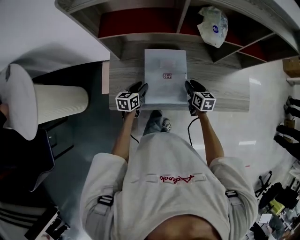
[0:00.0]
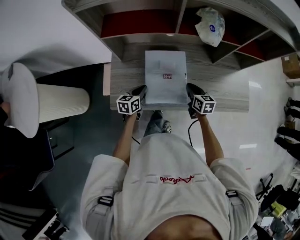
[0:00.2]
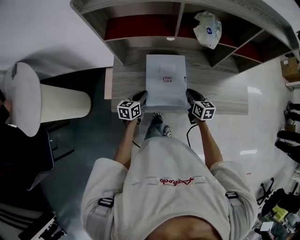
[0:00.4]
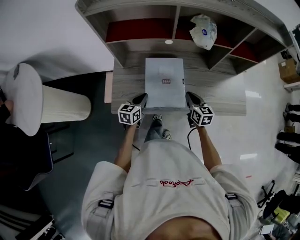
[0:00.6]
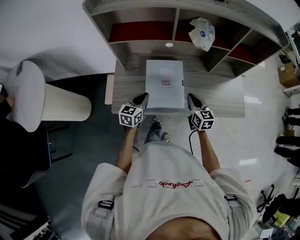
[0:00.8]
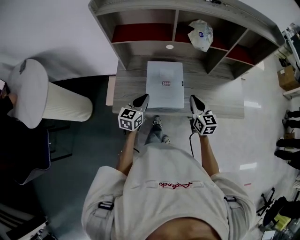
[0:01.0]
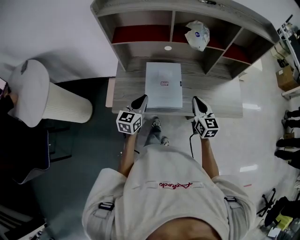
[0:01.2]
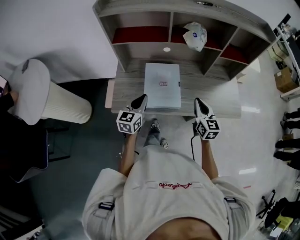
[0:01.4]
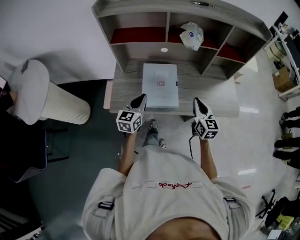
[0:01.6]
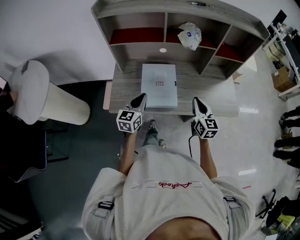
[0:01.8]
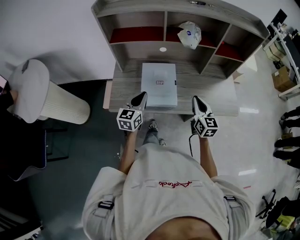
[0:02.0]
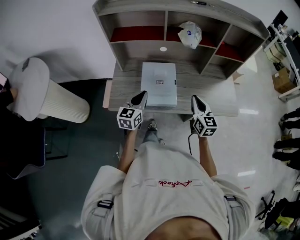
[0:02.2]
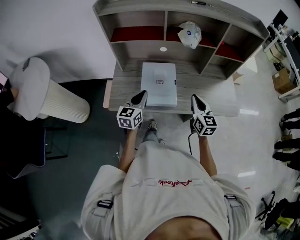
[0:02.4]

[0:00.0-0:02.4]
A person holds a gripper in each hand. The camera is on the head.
0:00.0 to 0:01.2: Both grippers travel together upward and backward, about 20 cm. The left gripper changes its angle by about 30 degrees. The right gripper changes its angle by about 30 degrees.
0:01.2 to 0:02.4: The grippers move only a little.

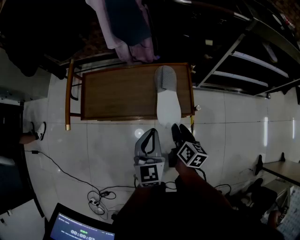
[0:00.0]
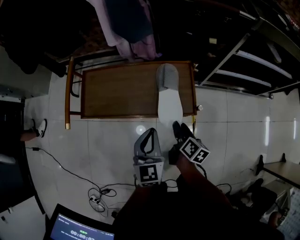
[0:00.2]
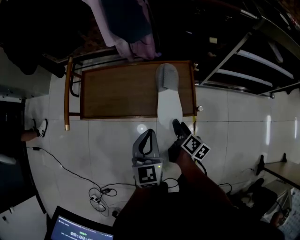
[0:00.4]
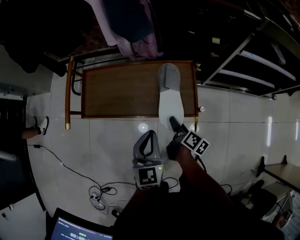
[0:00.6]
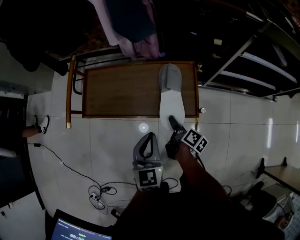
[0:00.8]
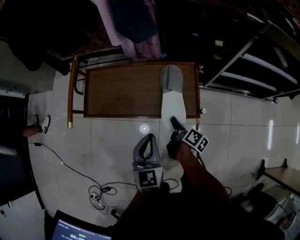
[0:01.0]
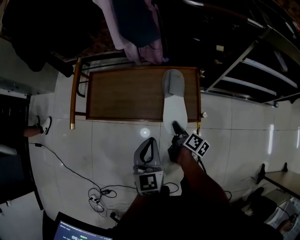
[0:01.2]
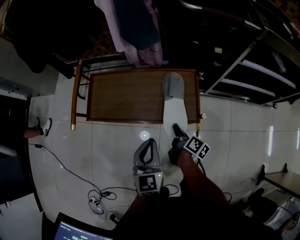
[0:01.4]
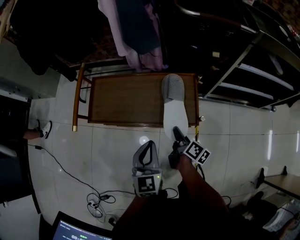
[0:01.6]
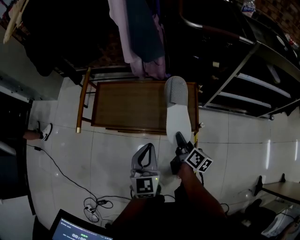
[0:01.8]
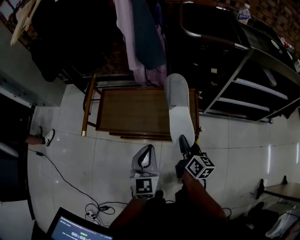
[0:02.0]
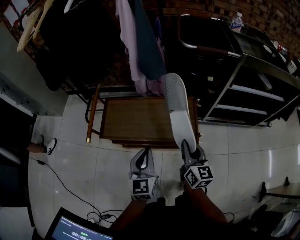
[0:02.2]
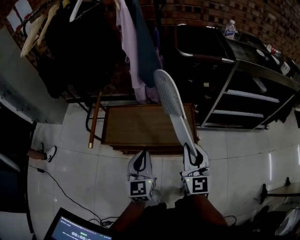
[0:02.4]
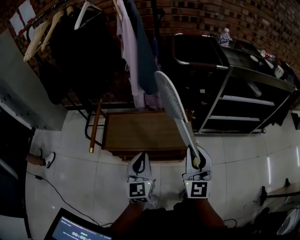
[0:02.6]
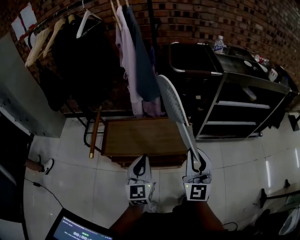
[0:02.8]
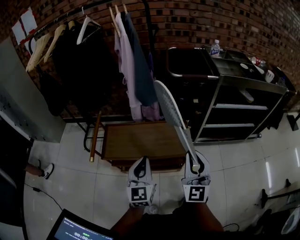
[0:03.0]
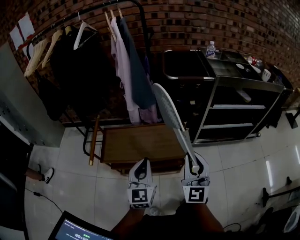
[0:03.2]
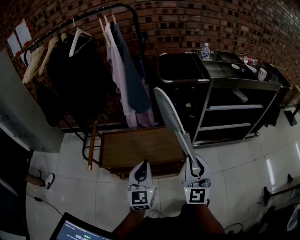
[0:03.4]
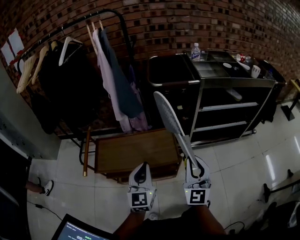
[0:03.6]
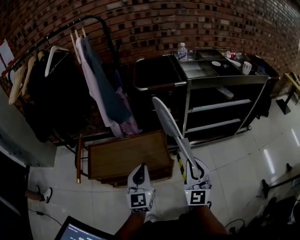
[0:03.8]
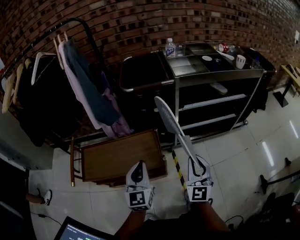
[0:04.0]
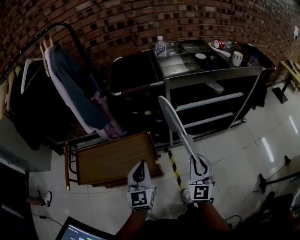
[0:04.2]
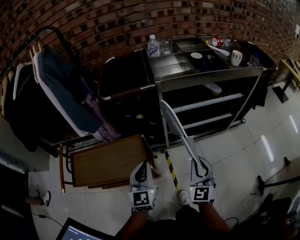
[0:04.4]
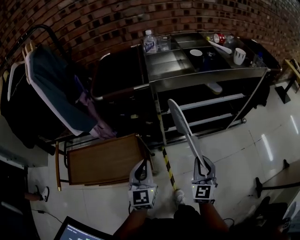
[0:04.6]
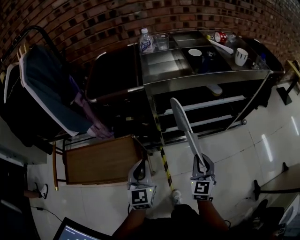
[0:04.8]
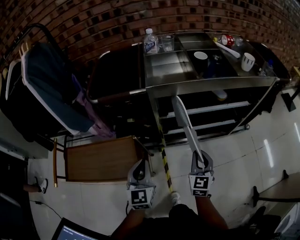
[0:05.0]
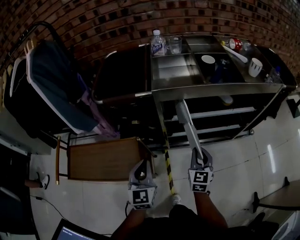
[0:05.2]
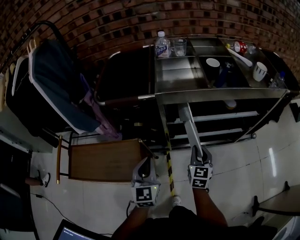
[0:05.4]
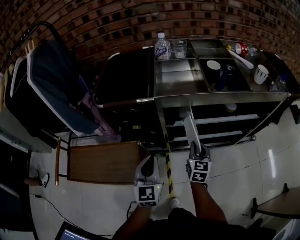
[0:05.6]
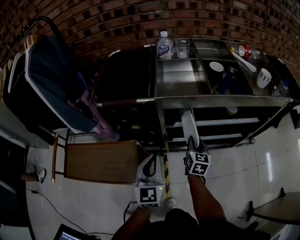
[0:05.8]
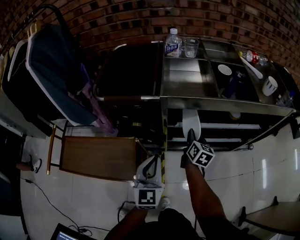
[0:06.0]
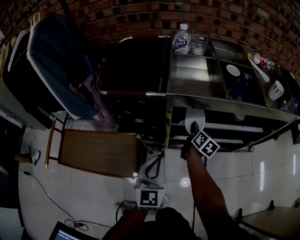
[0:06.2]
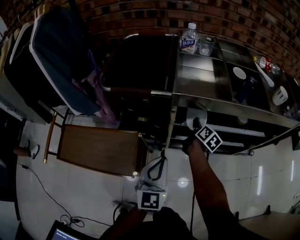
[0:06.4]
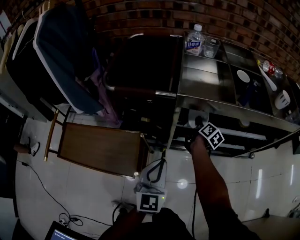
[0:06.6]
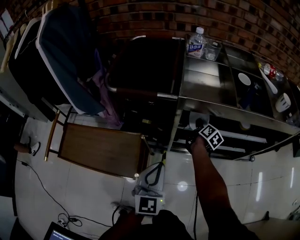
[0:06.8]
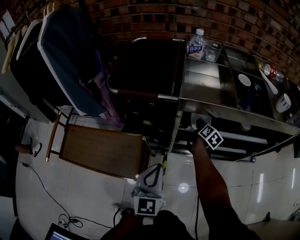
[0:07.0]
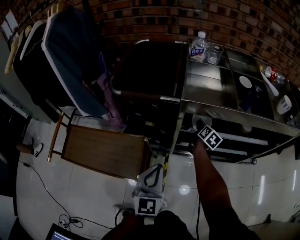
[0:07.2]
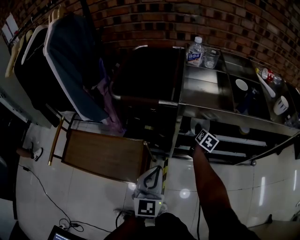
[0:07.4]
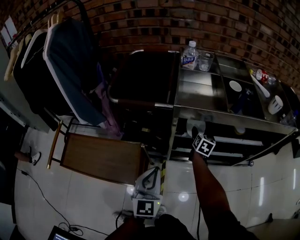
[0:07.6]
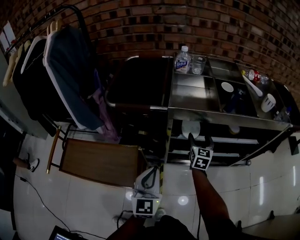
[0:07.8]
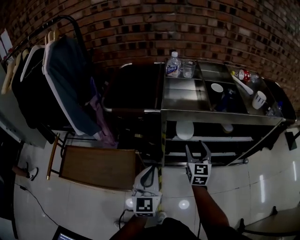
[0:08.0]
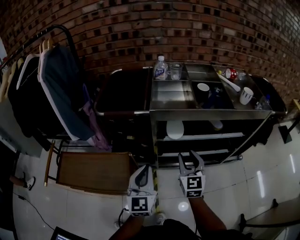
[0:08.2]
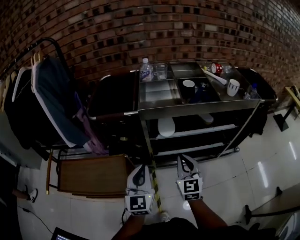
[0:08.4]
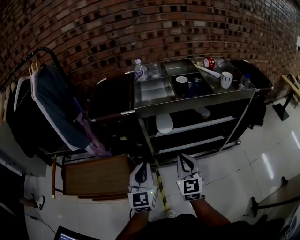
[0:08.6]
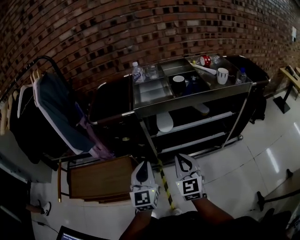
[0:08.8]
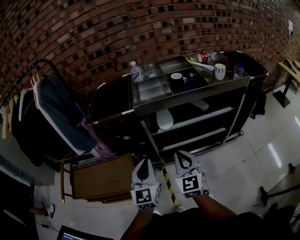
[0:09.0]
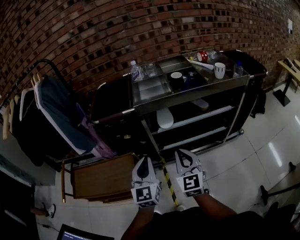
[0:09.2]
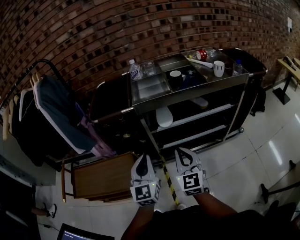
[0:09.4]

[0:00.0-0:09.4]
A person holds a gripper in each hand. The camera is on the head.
0:00.0 to 0:01.6: The right gripper turns by approximately 20 degrees.
0:01.6 to 0:03.2: The right gripper goes some 35 cm upward, and rotates around the line of its fingers by roughly 80 degrees, counterclockwise from behind. The left gripper heads upward, covering approximately 15 cm.
0:03.2 to 0:04.8: The right gripper shifts about 40 cm to the right, forward and downward, and swivels some 30 degrees; the left gripper shifts approximately 35 cm to the right and forward.
0:04.8 to 0:06.2: The left gripper is displaced forward and to the right by approximately 10 cm; the right gripper travels forward by roughly 30 cm, and twists roughly 50 degrees clockwise, seen from behind.
0:06.2 to 0:07.8: The right gripper shifts some 5 cm upward, turns by about 40 degrees, and opens.
0:07.8 to 0:09.4: The right gripper travels backward and upward by some 30 cm, changes its angle by some 20 degrees, and closes up, while the left gripper shifts approximately 10 cm upward and backward.

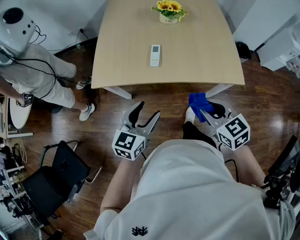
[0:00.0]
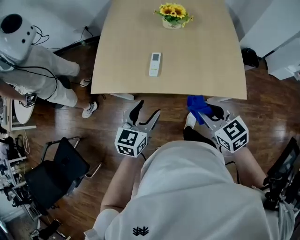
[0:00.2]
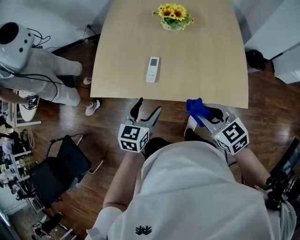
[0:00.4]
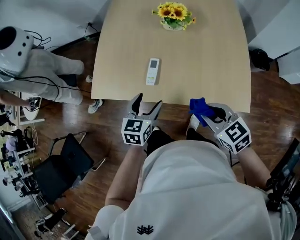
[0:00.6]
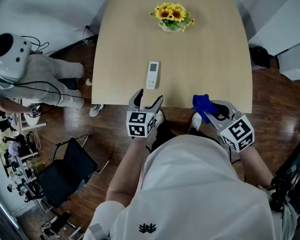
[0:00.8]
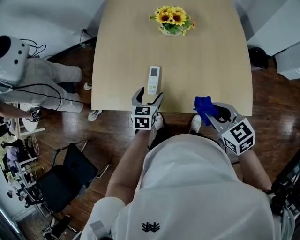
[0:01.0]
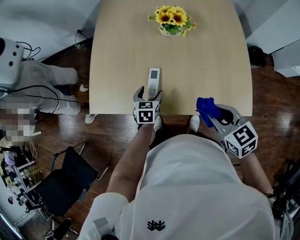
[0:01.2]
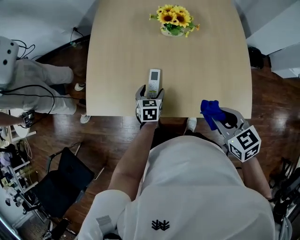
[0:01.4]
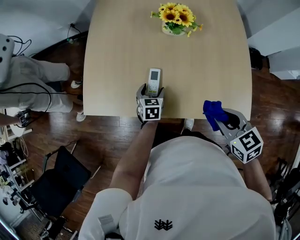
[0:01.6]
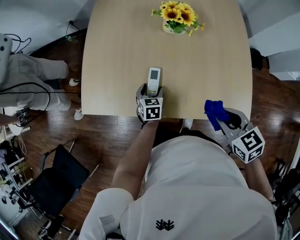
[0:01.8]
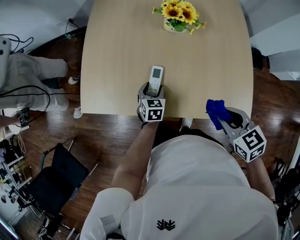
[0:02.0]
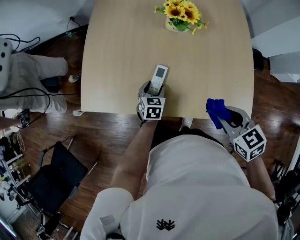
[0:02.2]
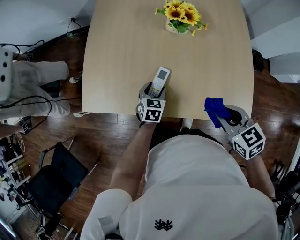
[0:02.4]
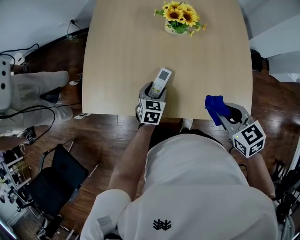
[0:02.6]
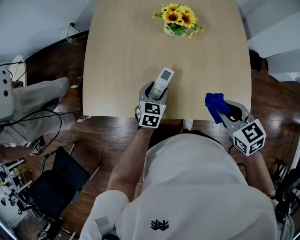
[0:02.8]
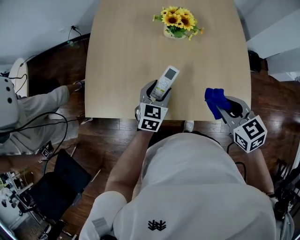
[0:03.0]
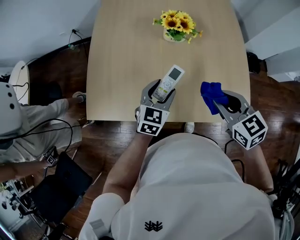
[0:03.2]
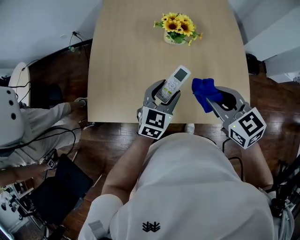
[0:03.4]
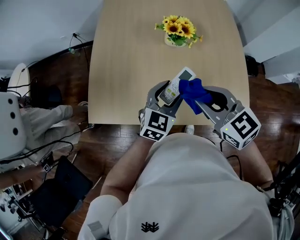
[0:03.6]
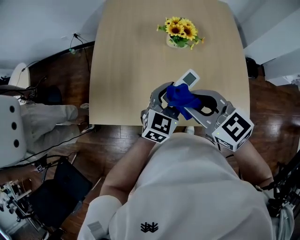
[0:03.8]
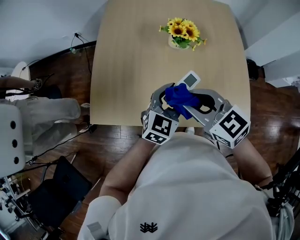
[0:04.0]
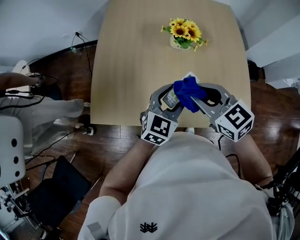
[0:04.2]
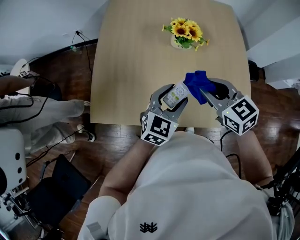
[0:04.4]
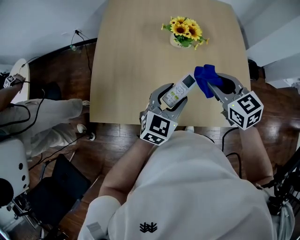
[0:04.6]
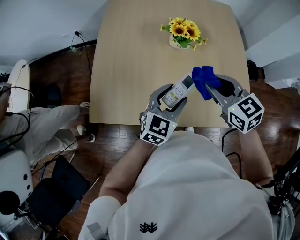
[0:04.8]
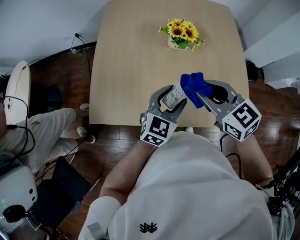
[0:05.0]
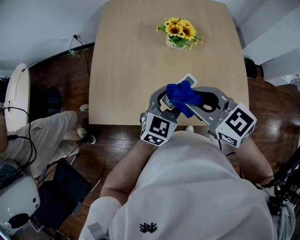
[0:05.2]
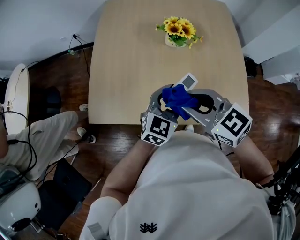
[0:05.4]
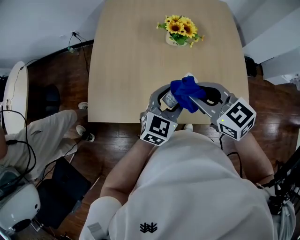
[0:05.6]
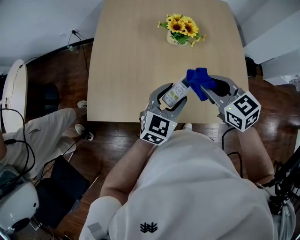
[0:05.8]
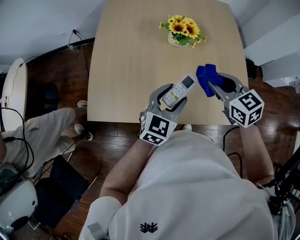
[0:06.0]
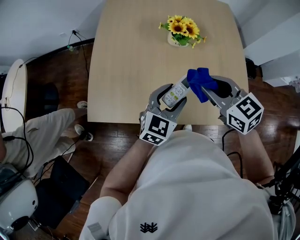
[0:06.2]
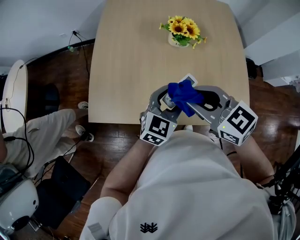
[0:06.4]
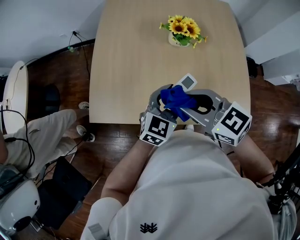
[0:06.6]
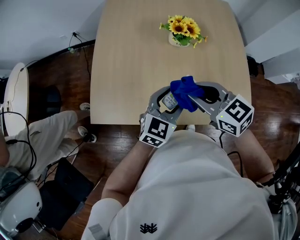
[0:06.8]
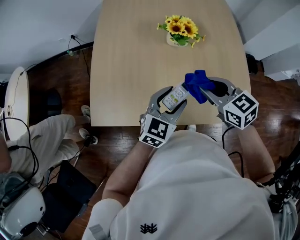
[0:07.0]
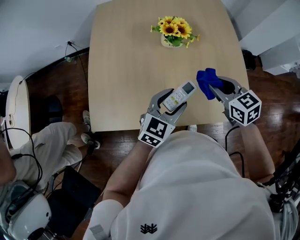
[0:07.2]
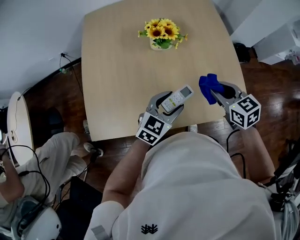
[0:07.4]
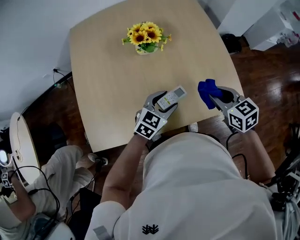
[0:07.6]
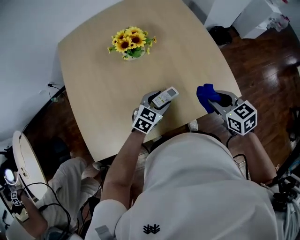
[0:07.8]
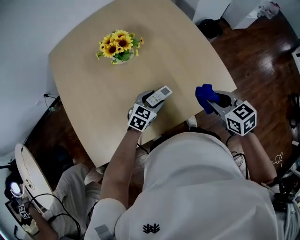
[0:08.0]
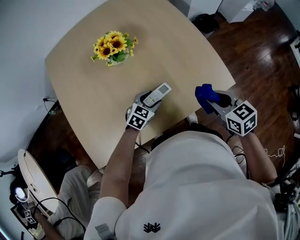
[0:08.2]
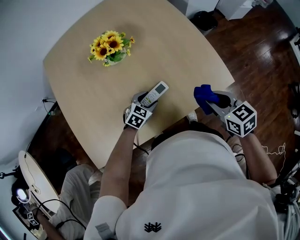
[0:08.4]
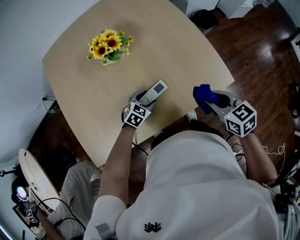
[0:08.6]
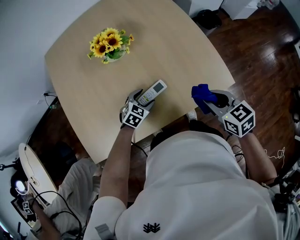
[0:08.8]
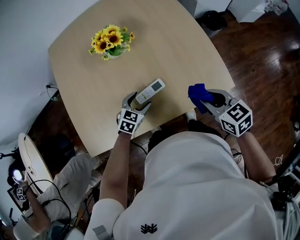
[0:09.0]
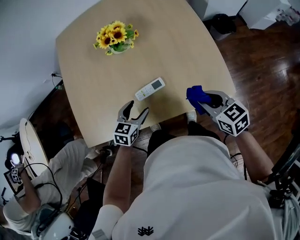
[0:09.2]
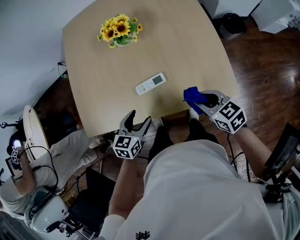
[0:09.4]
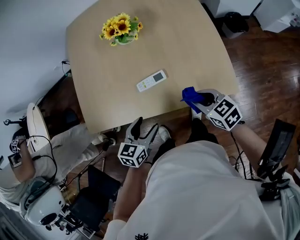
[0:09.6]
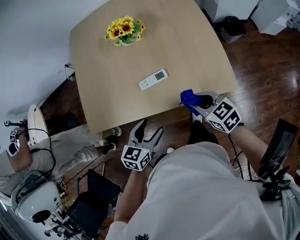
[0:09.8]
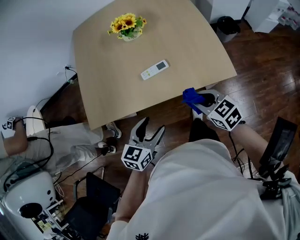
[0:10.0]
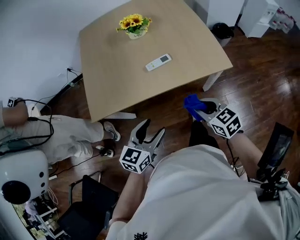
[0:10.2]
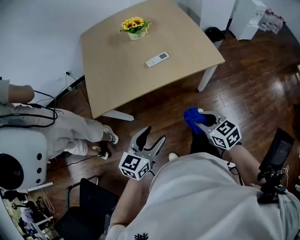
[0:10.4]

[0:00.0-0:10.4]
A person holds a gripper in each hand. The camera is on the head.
0:00.0 to 0:01.4: The left gripper travels forward and downward by some 35 cm, and swivels approximately 30 degrees; the right gripper travels forward and to the right by about 20 cm.
0:01.4 to 0:03.0: The right gripper shifts about 5 cm forward. Meanwhile the left gripper travels upward by about 10 cm, and turns by approximately 20 degrees.
0:03.0 to 0:04.4: The right gripper shifts approximately 15 cm to the left and forward. Meanwhile the left gripper goes some 10 cm upward.
0:06.0 to 0:07.4: The left gripper shifts by roughly 5 cm.
0:07.4 to 0:09.0: The right gripper heads to the right and backward, covering about 15 cm; the left gripper is displaced downward by about 15 cm, and swivels roughly 20 degrees.
0:09.0 to 0:10.4: The left gripper goes some 40 cm backward and upward, and turns by some 30 degrees, while the right gripper shifts some 35 cm backward and to the left.

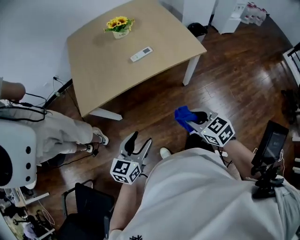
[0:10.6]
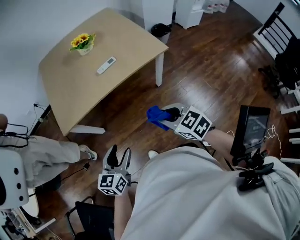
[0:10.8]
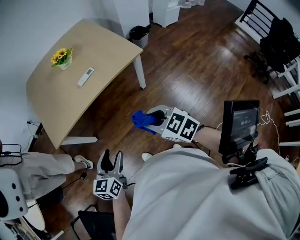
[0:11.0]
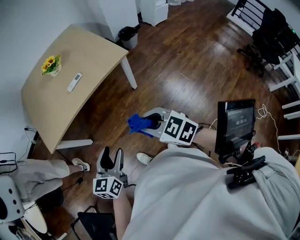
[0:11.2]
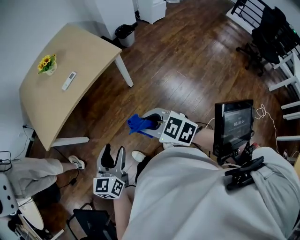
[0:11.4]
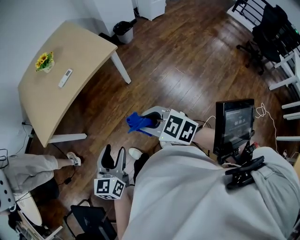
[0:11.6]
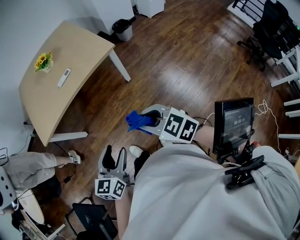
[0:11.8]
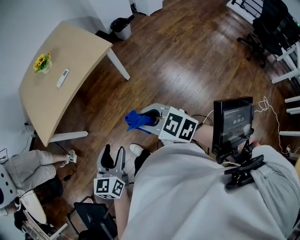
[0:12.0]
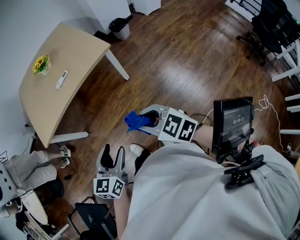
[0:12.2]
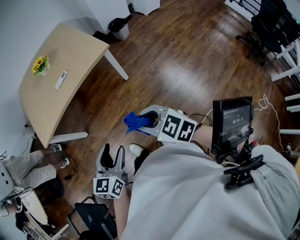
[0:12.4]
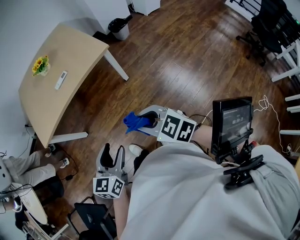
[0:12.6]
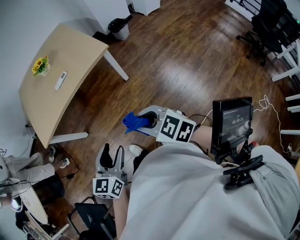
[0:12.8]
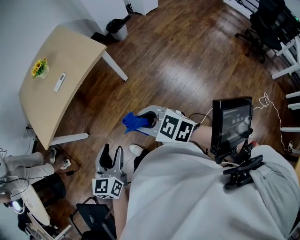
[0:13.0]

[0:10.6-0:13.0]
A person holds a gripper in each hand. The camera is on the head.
0:10.6 to 0:11.8: The left gripper moves to the right and backward, about 30 cm, while the right gripper is displaced backward and to the right by some 25 cm.
0:11.8 to 0:13.0: Both grippers stay about where they are.
